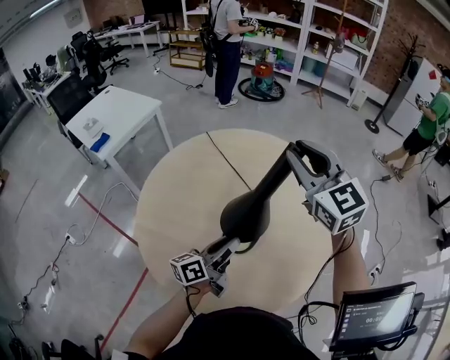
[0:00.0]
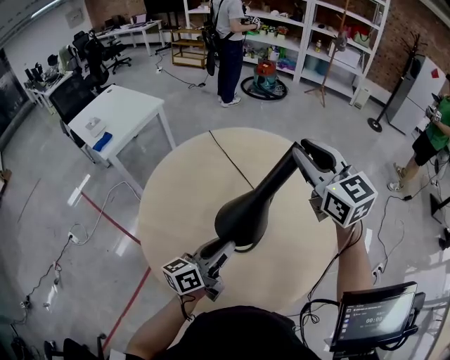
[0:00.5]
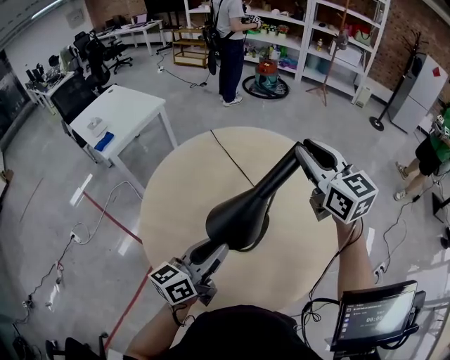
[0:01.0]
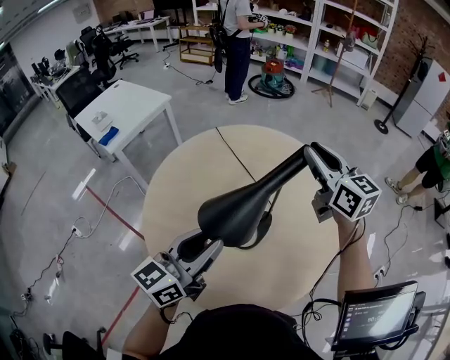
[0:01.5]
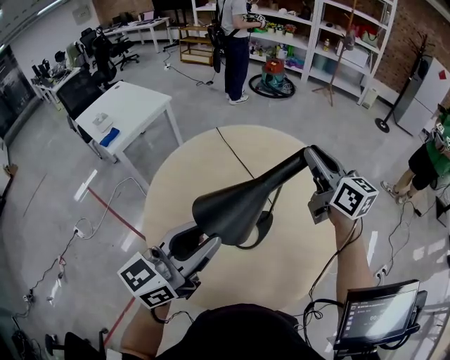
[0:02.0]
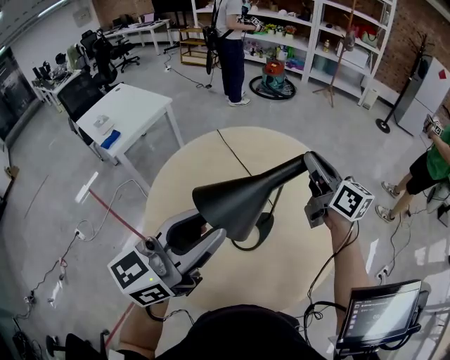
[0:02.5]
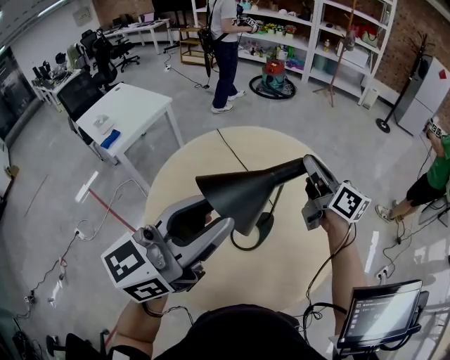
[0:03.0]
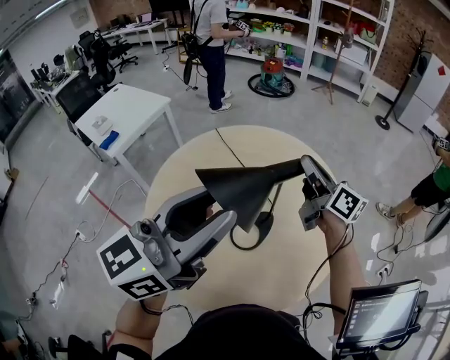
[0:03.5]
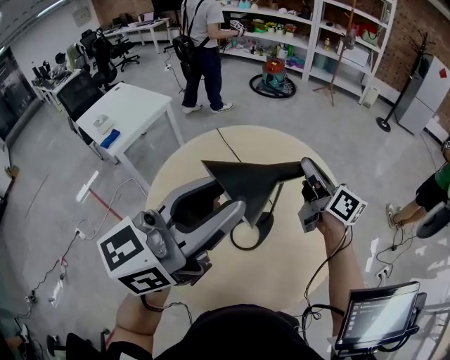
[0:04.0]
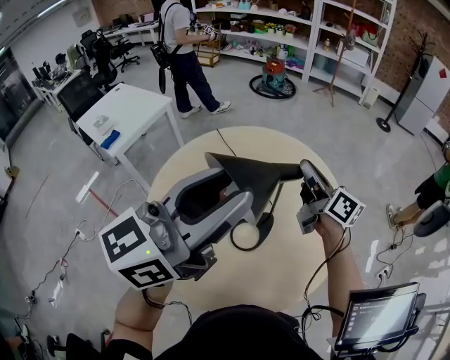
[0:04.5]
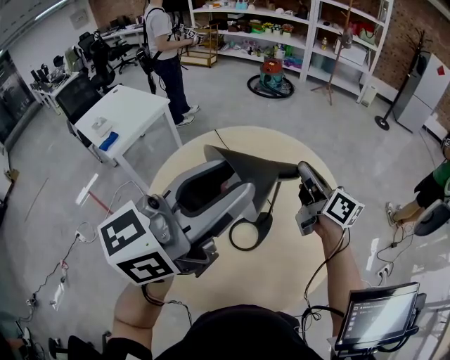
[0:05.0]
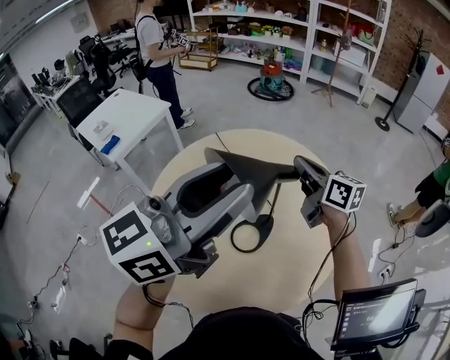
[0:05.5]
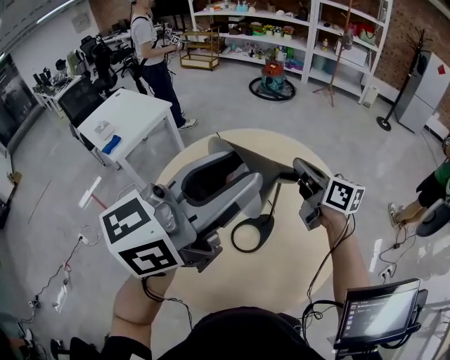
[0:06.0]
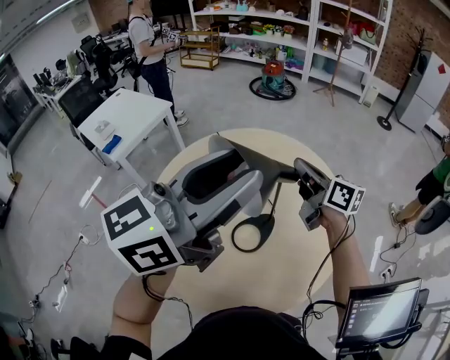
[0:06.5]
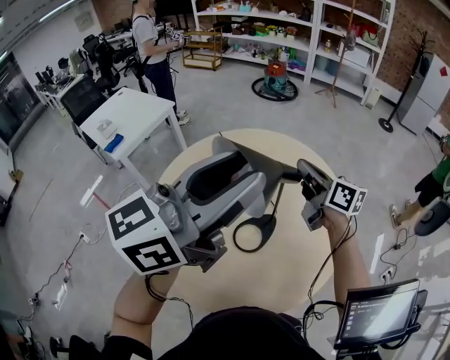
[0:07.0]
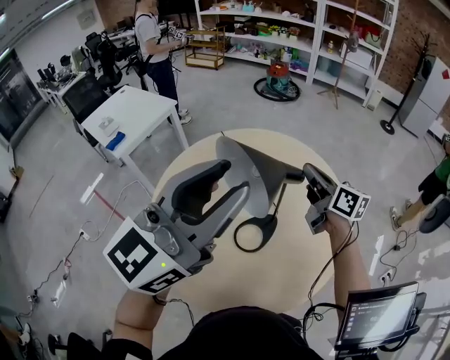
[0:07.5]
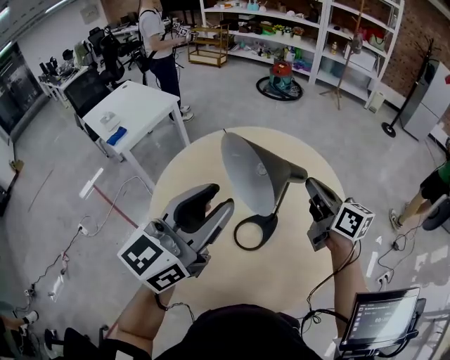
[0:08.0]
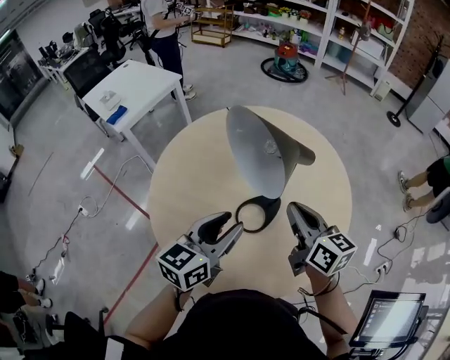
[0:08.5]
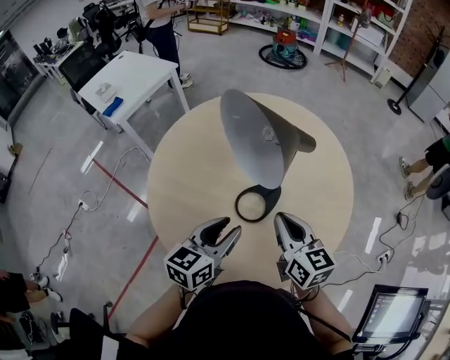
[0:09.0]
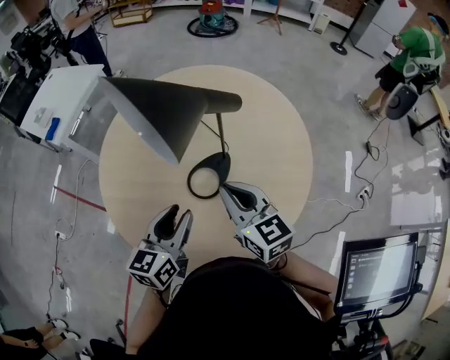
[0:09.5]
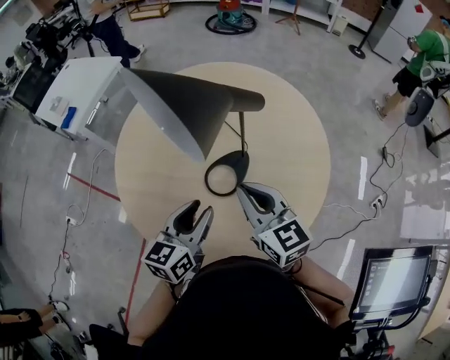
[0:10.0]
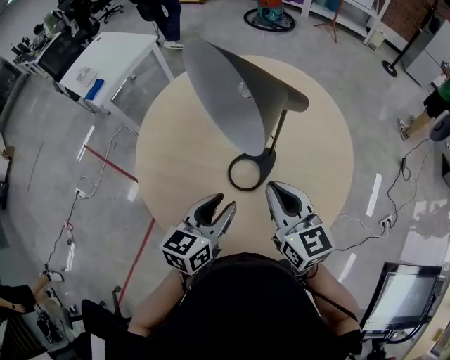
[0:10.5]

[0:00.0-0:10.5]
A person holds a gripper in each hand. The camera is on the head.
0:00.0 to 0:02.0: The left gripper moves upward, some 20 cm, and changes its angle by approximately 40 degrees; the right gripper goes roughly 5 cm downward, and swivels some 40 degrees.
0:02.0 to 0:04.0: The left gripper travels upward by some 10 cm.
0:04.0 to 0:06.5: The right gripper closes up. The left gripper moves roughly 5 cm.
0:06.5 to 0:08.5: The left gripper moves downward, about 25 cm, and changes its angle by about 30 degrees. The right gripper goes about 15 cm backward and downward.
0:08.5 to 0:10.5: The right gripper heads backward, covering some 5 cm; the left gripper is displaced downward by approximately 10 cm.

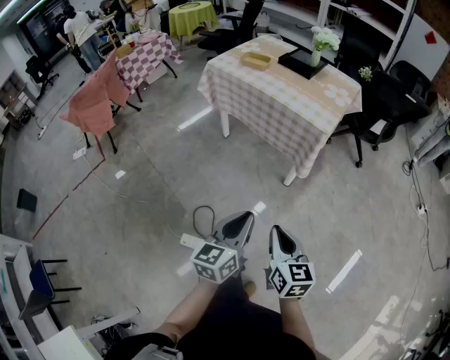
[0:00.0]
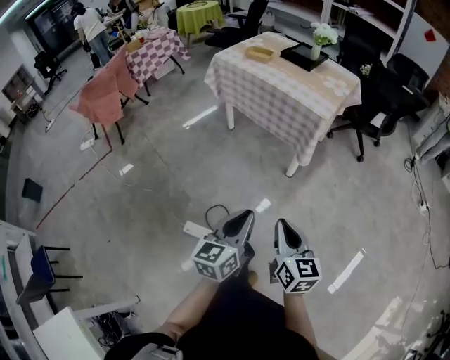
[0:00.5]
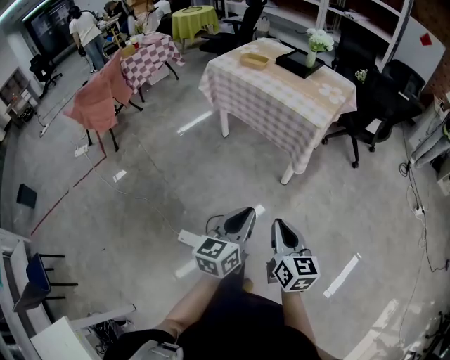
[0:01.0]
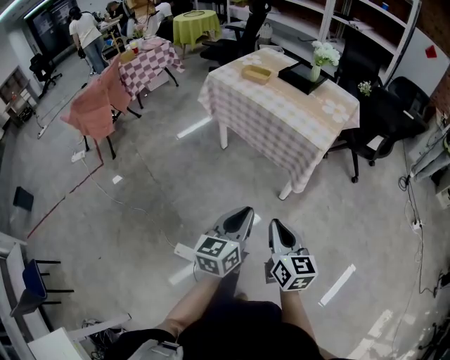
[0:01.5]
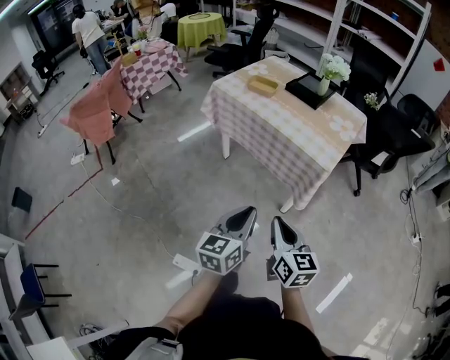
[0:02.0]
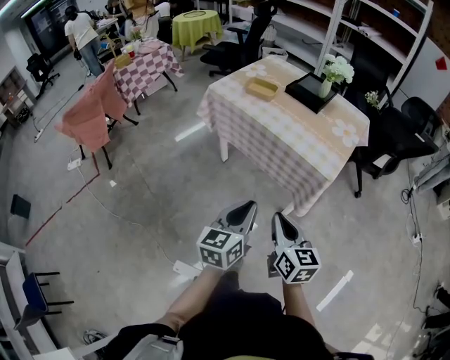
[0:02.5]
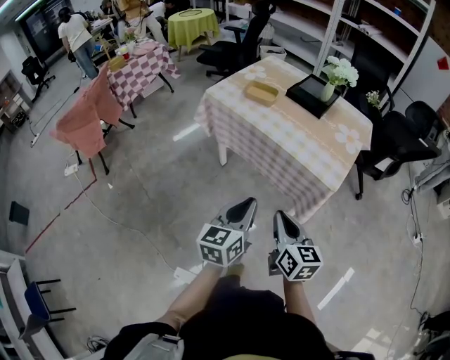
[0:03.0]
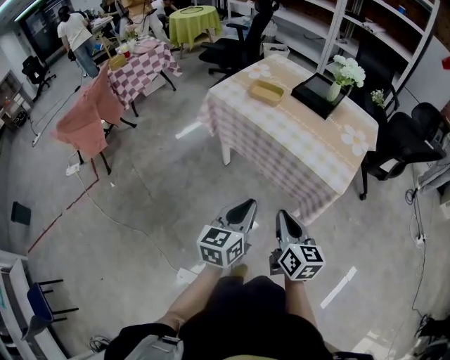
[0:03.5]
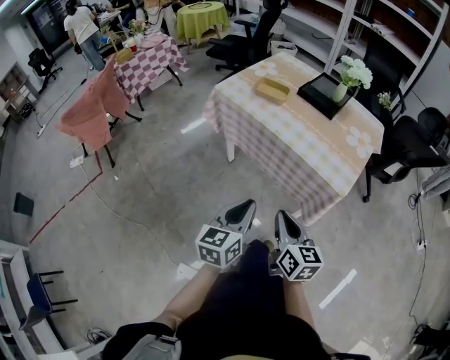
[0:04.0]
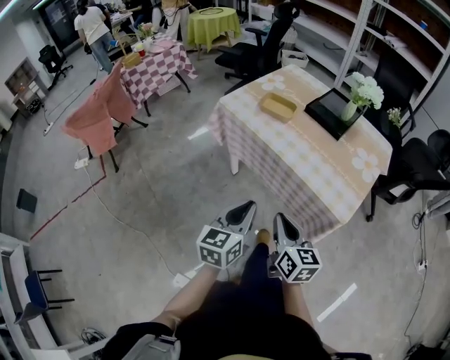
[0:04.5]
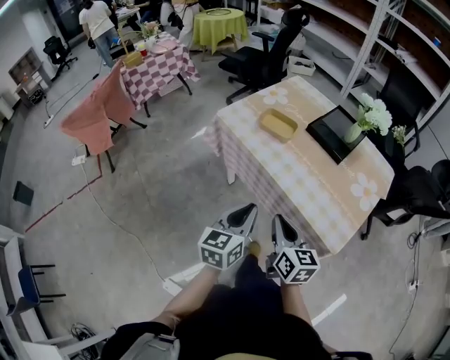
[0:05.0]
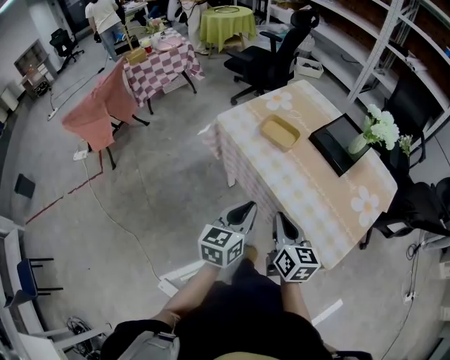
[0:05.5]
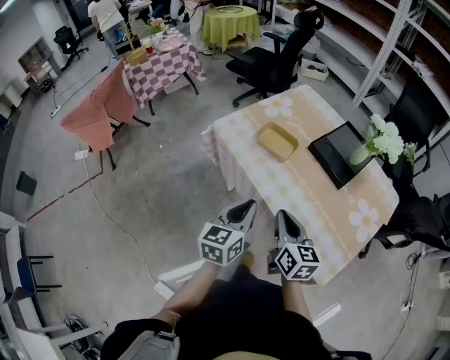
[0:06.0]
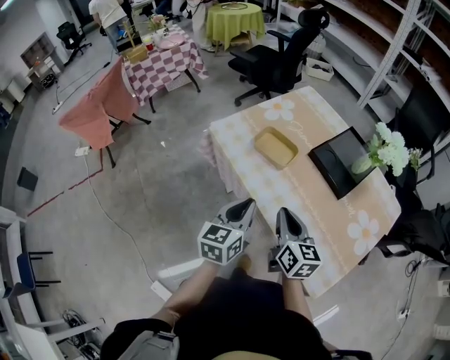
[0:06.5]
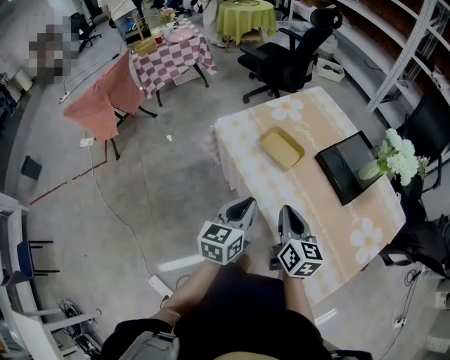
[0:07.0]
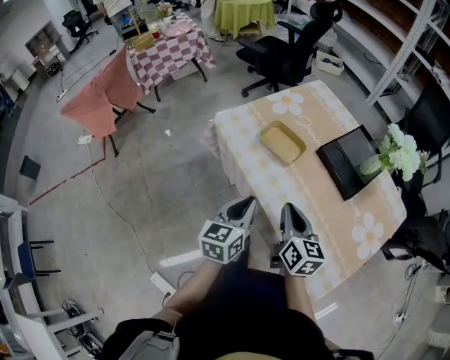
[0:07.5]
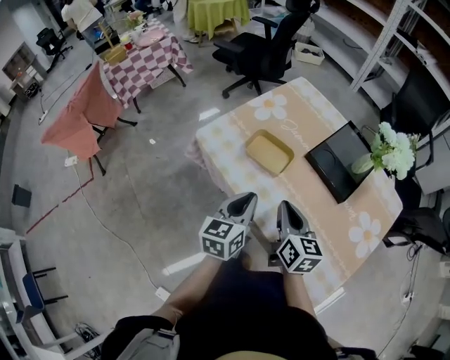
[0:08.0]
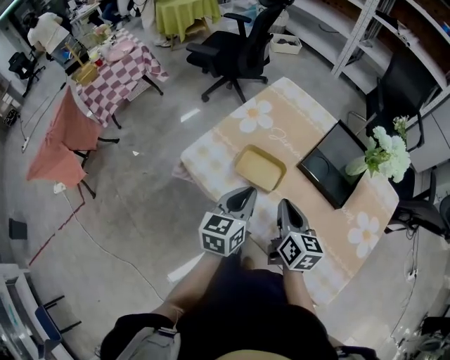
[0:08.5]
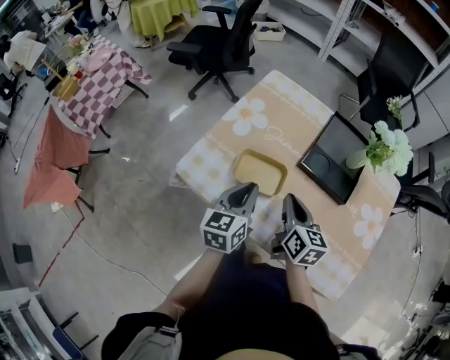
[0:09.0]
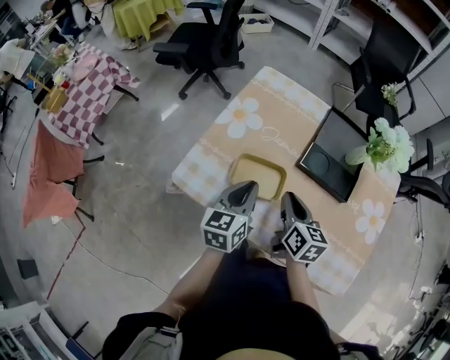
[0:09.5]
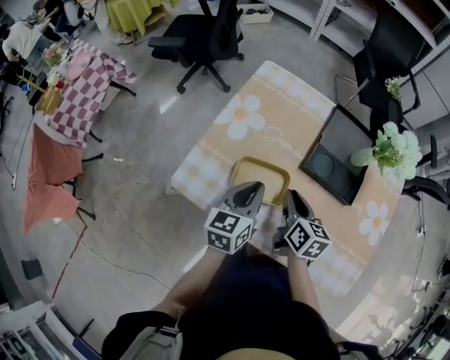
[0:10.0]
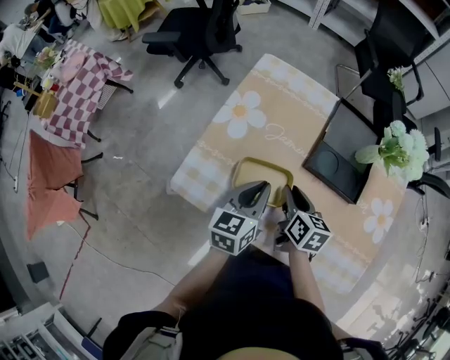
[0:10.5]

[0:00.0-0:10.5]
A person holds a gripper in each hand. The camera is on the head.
0:00.0 to 0:02.0: Both grippers move forward, approximately 15 cm.
0:02.0 to 0:04.0: The two grippers go approximately 15 cm forward.
0:04.0 to 0:06.5: The grippers both shift forward by roughly 35 cm.
0:06.5 to 0:08.5: The grippers both shift forward by approximately 15 cm.
0:08.5 to 0:10.5: The left gripper shifts about 10 cm forward. Meanwhile the right gripper is displaced forward and downward by roughly 10 cm, swivels approximately 20 degrees, and opens.

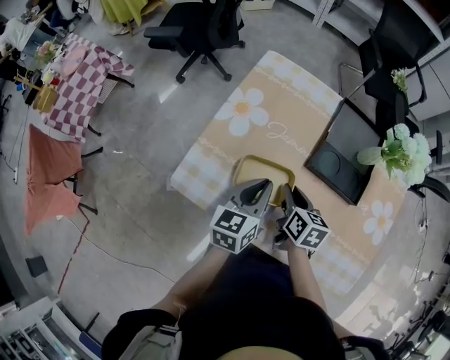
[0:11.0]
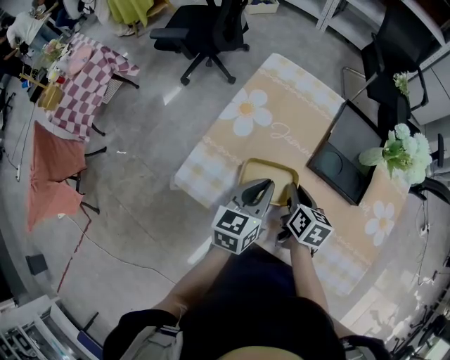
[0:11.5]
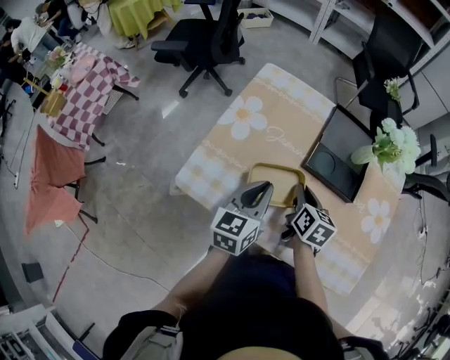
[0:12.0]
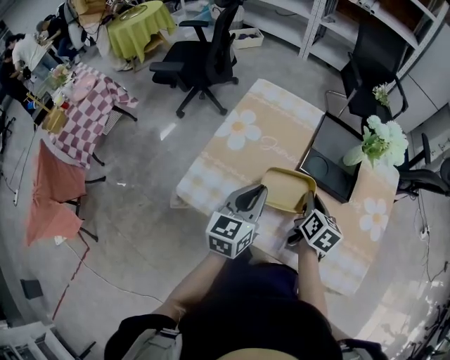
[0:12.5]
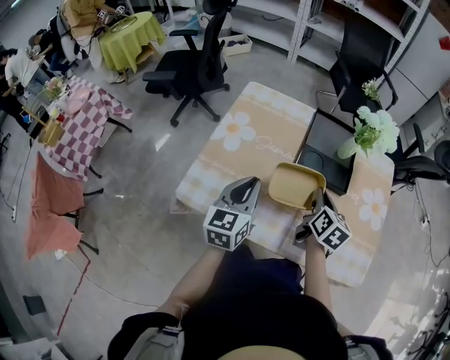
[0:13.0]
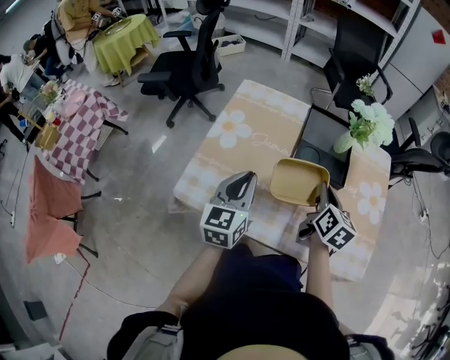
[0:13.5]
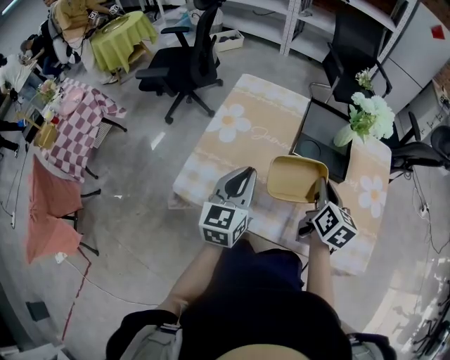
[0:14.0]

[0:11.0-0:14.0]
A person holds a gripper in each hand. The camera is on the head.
0:11.0 to 0:12.5: The right gripper travels to the right by some 10 cm; the left gripper shifts roughly 5 cm upward.
0:12.5 to 0:14.0: The right gripper travels upward by about 5 cm.

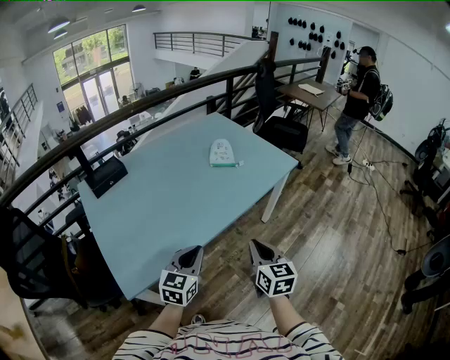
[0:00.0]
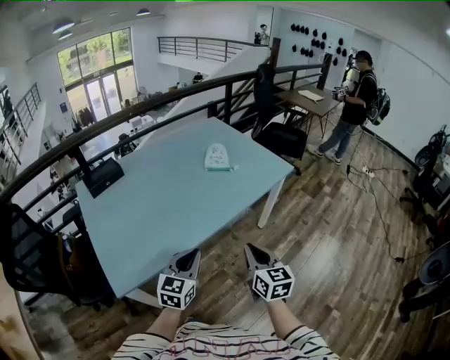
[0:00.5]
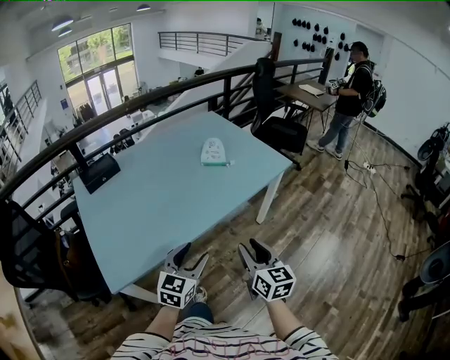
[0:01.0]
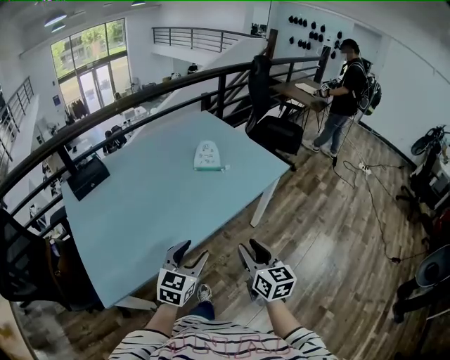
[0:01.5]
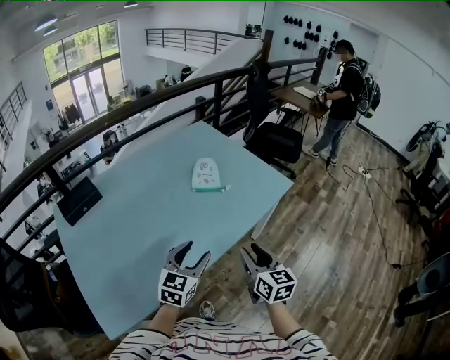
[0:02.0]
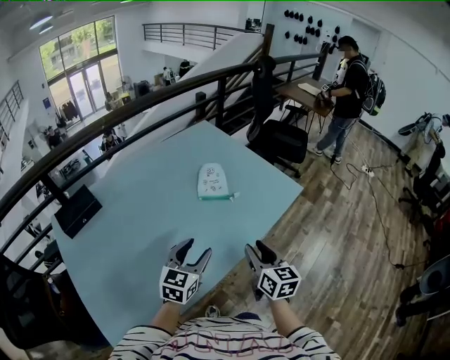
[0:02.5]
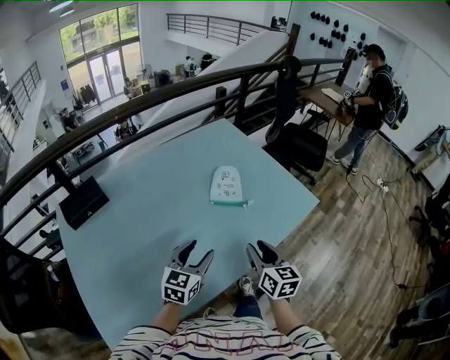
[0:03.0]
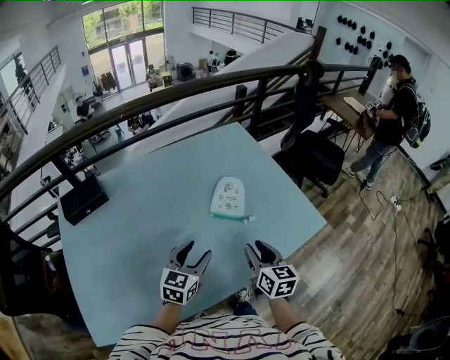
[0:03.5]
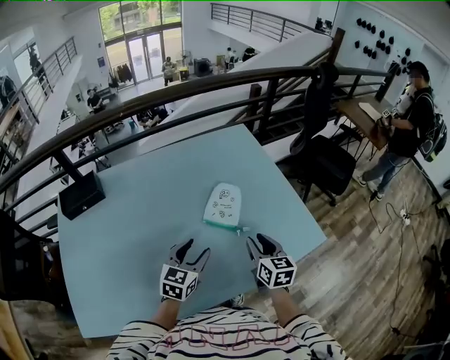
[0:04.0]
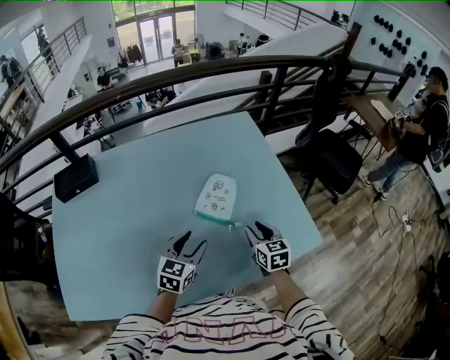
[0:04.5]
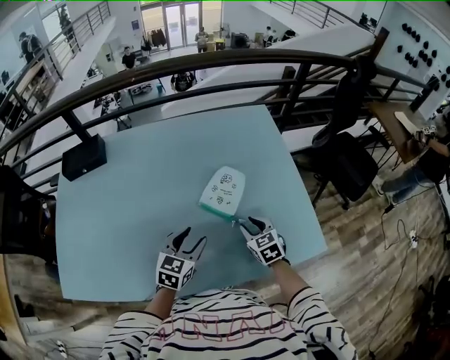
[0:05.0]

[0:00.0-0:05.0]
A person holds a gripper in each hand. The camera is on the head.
0:00.0 to 0:02.5: The two grippers go approximately 30 cm forward. The right gripper opens its fingers. The left gripper opens up.
0:02.5 to 0:05.0: The right gripper shifts by approximately 40 cm, and rotates about 60 degrees; the left gripper changes place by approximately 25 cm, and turns by some 30 degrees.
